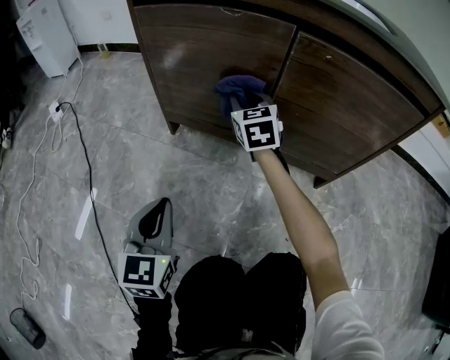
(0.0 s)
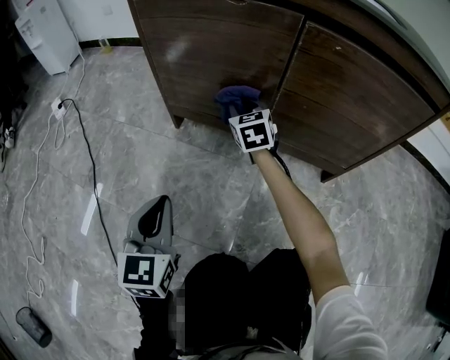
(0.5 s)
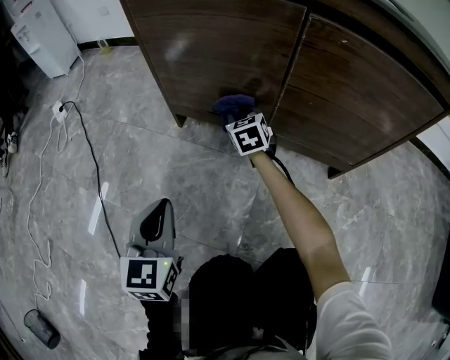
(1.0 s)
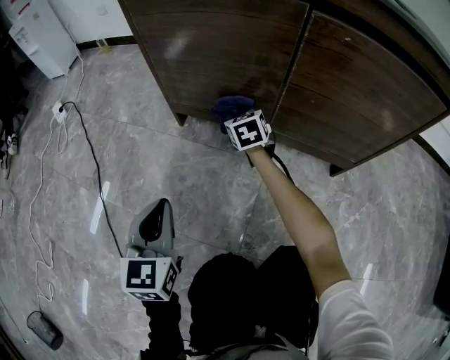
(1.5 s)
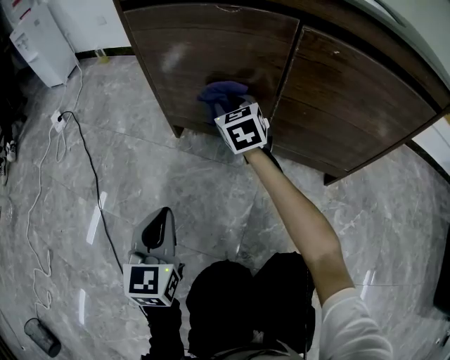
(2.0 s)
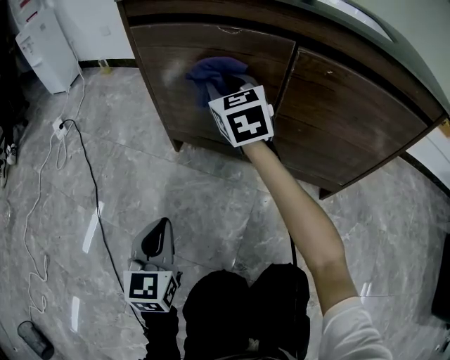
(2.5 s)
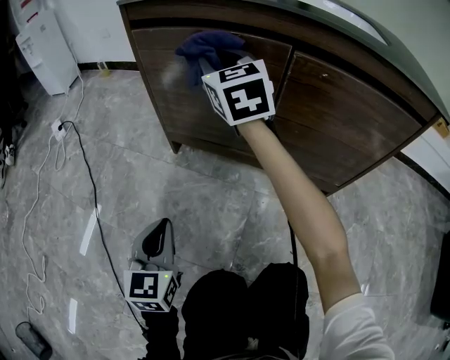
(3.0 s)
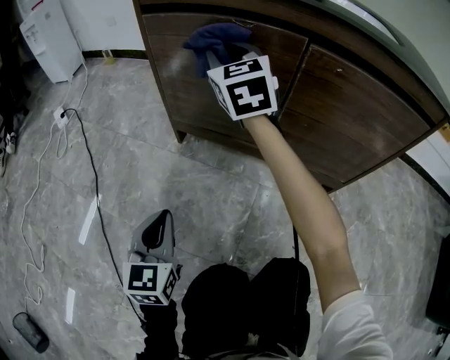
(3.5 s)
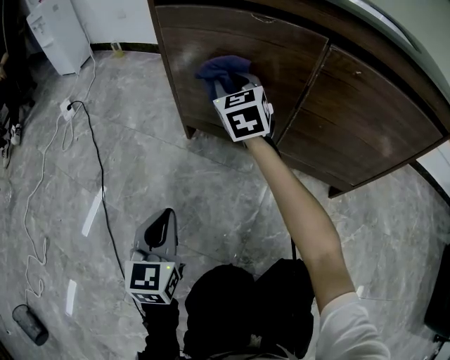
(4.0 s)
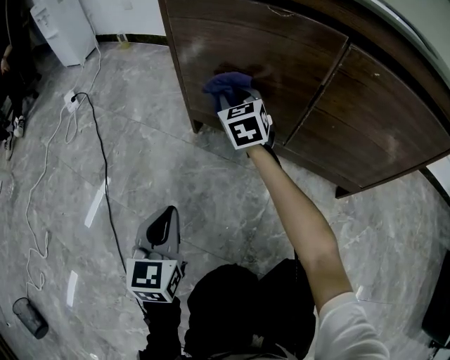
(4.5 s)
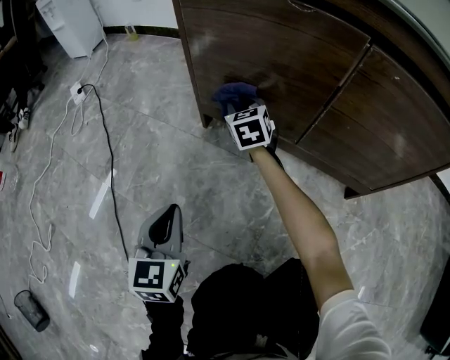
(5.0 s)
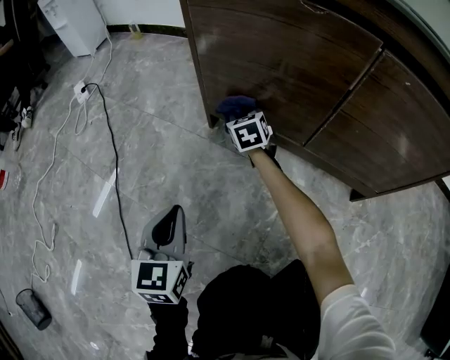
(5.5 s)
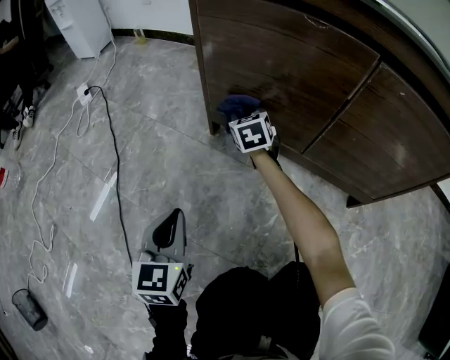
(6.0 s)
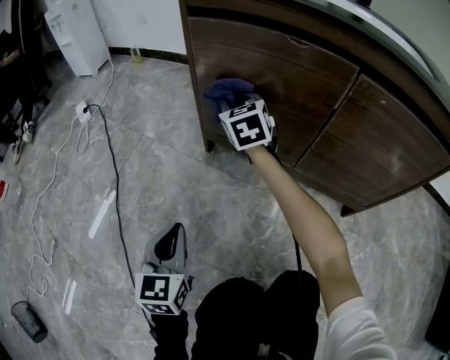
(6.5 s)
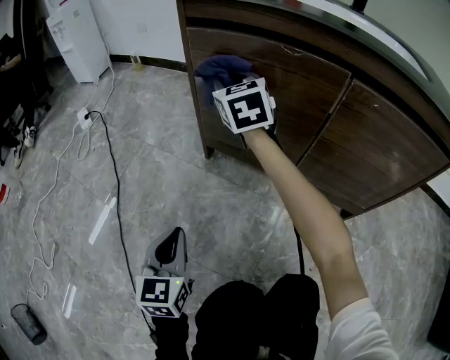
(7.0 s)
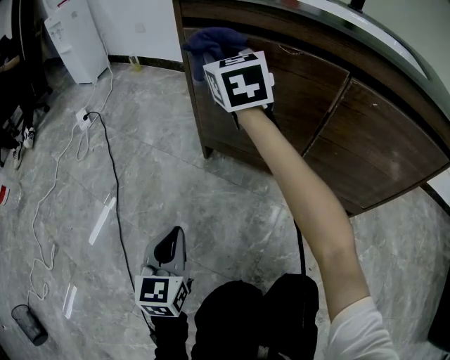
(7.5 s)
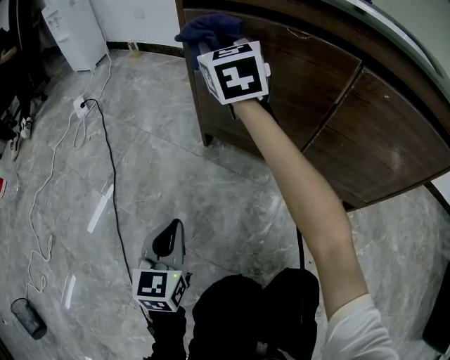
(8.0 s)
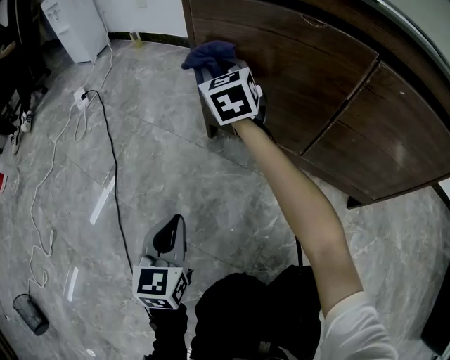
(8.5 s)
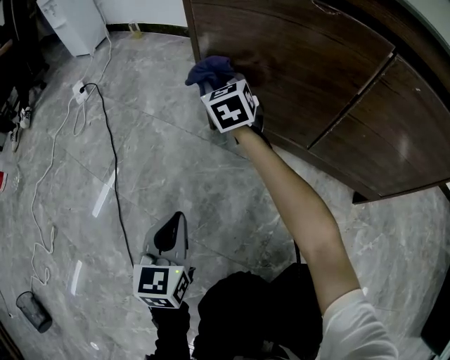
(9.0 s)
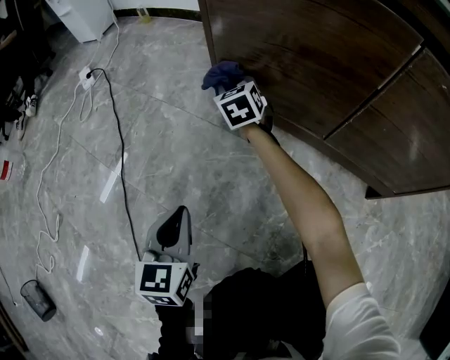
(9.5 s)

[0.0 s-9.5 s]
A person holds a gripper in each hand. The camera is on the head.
0.0 to 2.0 s: The right gripper travels to the left by approximately 5 cm, and moves roughly 15 cm downward and comes back.
2.0 to 4.0 s: The right gripper goes about 10 cm upward and to the left.
4.0 to 5.5 s: The right gripper shifts roughly 20 cm downward, and changes its angle by about 20 degrees.
5.5 to 7.5 s: The right gripper heads upward, covering about 35 cm, and rotates approximately 30 degrees.
7.5 to 9.5 s: The left gripper shifts about 5 cm downward. Meanwhile the right gripper heads downward, covering about 30 cm, and turns by approximately 20 degrees.

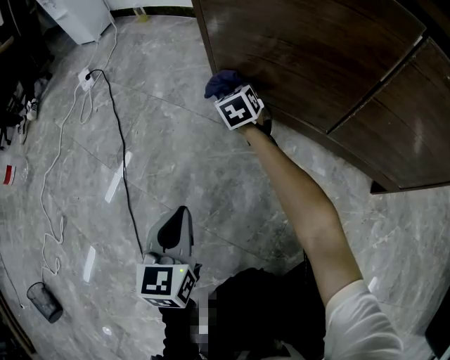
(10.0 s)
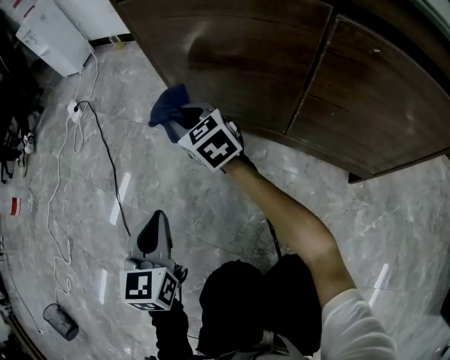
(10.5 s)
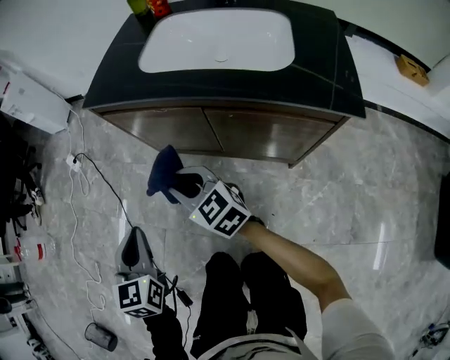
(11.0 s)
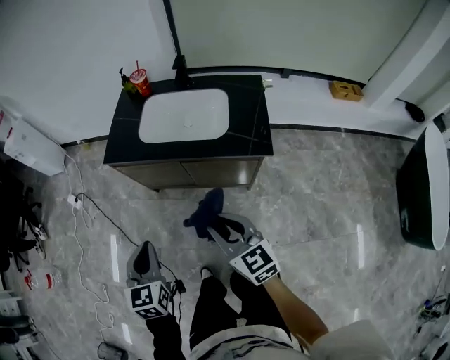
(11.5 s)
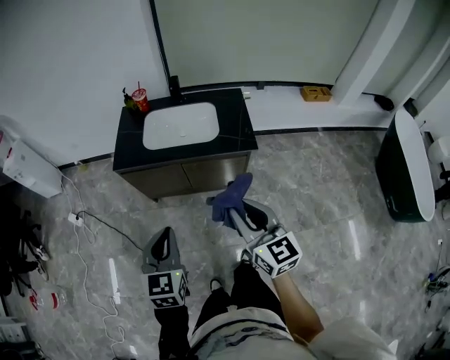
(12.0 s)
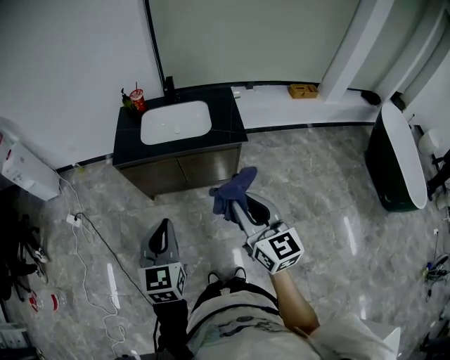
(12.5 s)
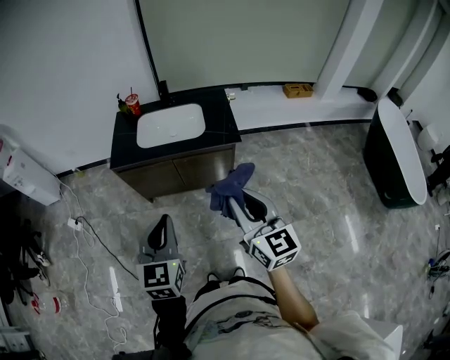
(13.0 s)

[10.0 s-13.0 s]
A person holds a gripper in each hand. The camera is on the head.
10.0 to 11.5 s: The left gripper goes roughly 60 cm upward; the right gripper moves upward and backward, some 90 cm, and turns by approximately 30 degrees.
11.5 to 13.0 s: Both grippers move upward and backward, roughly 25 cm. The right gripper turns by about 30 degrees. Meanwhile the left gripper rotates roughly 20 degrees.

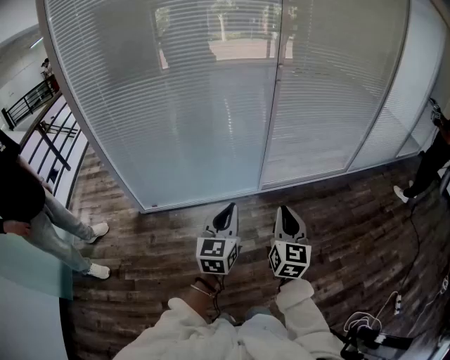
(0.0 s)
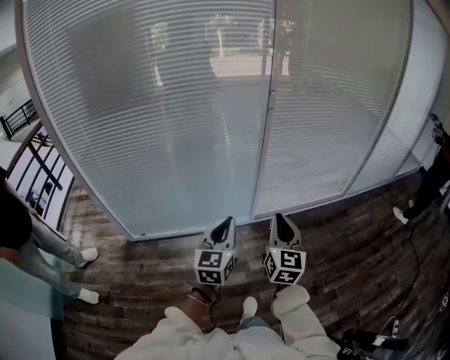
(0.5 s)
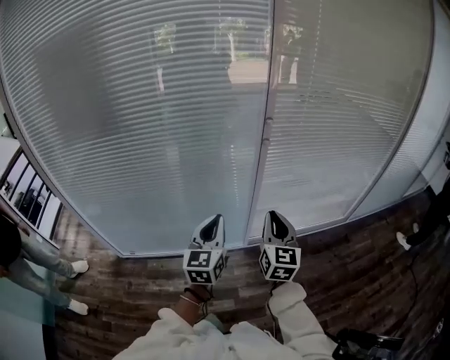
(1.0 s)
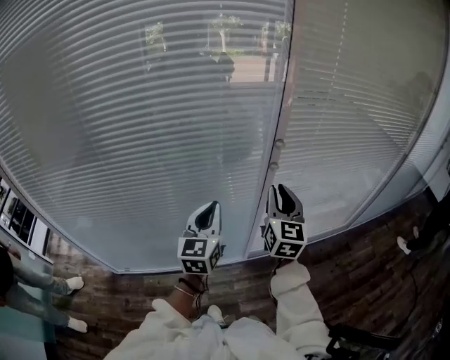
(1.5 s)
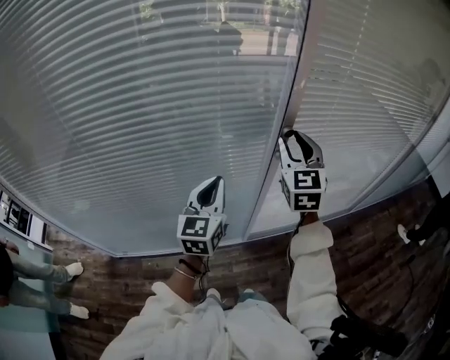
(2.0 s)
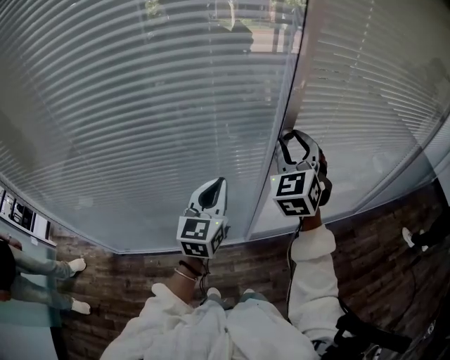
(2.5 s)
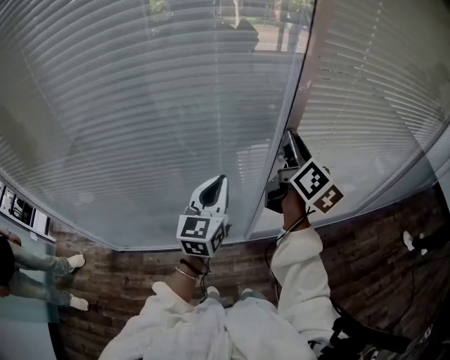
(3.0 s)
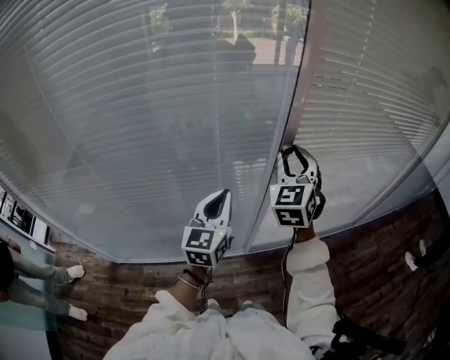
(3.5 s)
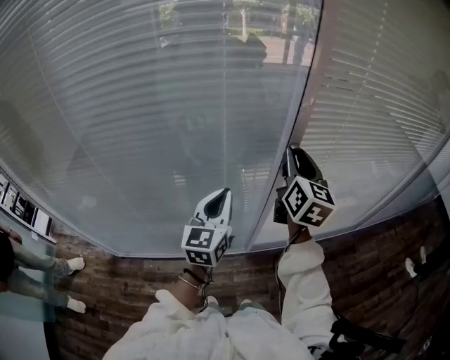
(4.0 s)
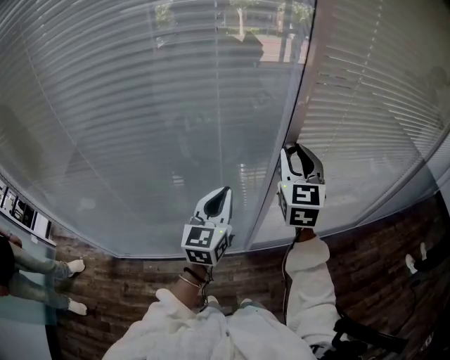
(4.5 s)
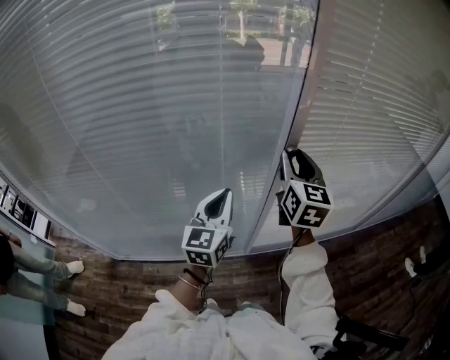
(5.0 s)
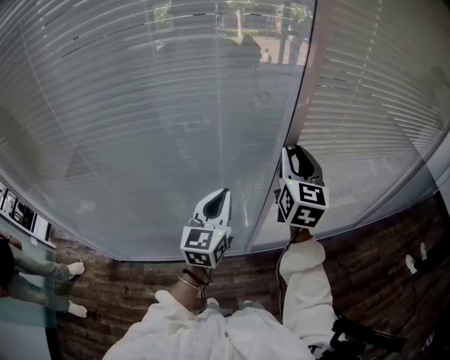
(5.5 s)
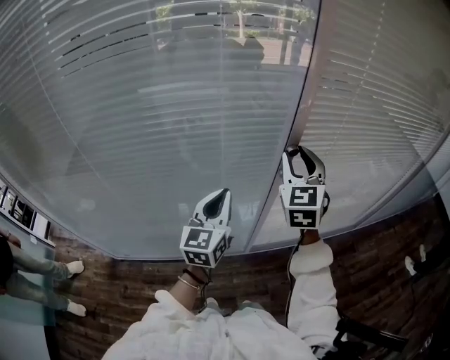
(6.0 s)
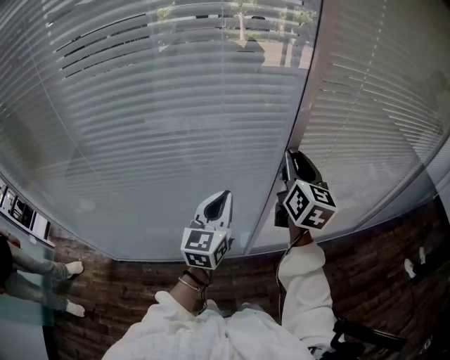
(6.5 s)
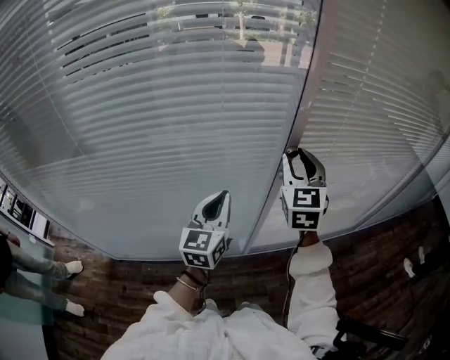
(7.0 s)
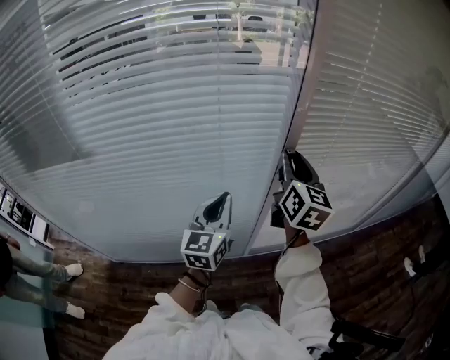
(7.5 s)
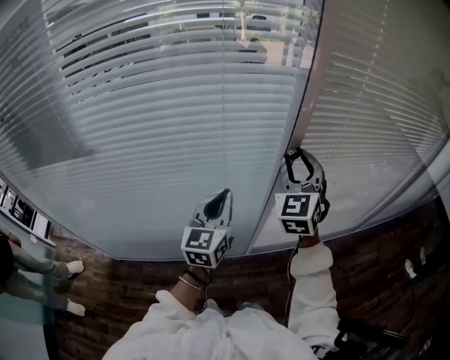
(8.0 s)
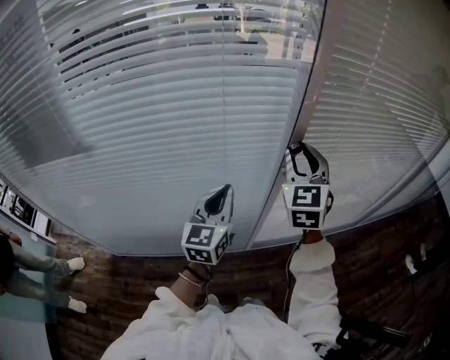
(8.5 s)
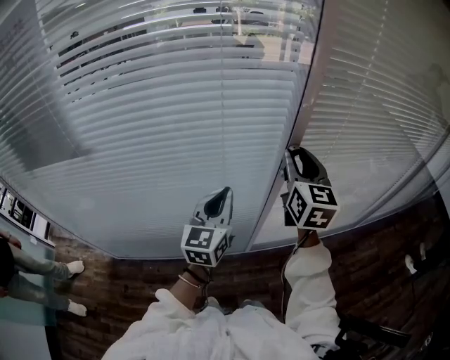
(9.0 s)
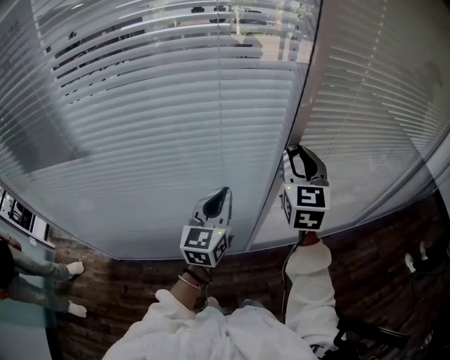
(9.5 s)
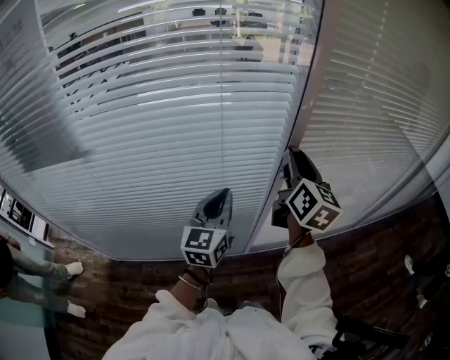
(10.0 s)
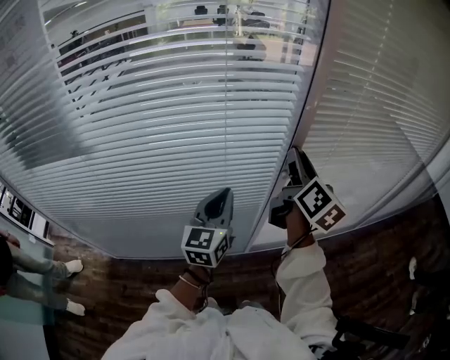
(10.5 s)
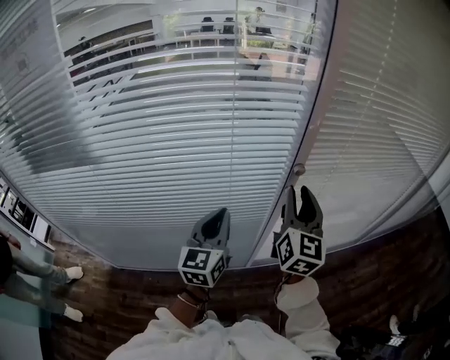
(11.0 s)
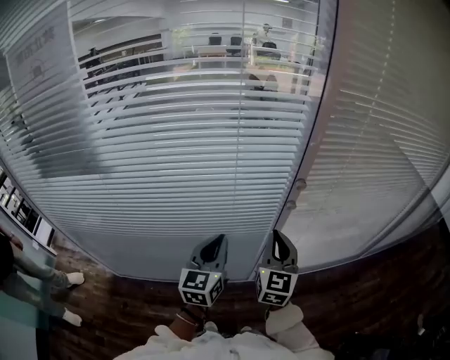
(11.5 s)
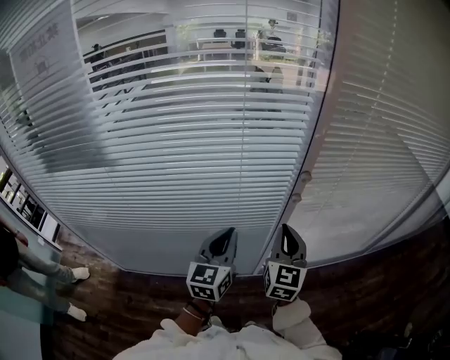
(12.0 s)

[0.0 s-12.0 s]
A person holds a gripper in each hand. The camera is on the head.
0.0 to 2.0 s: The pair of grippers is taken forward, roughly 70 cm. The right gripper swivels some 20 degrees, and opens up.
2.0 to 4.0 s: The right gripper swivels roughly 30 degrees.
4.0 to 6.0 s: The right gripper rotates some 40 degrees.
8.0 to 10.0 s: The right gripper rolls clockwise, seen from behind, by some 60 degrees.
10.0 to 12.0 s: The right gripper travels downward and backward by approximately 15 cm, turns by approximately 30 degrees, and closes; the left gripper goes some 5 cm backward.

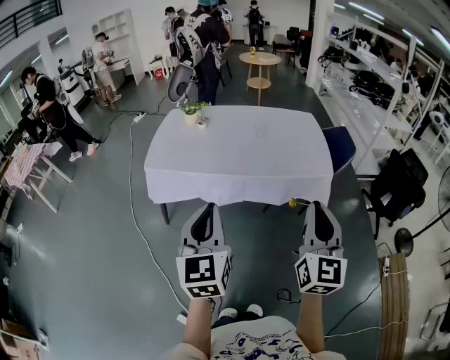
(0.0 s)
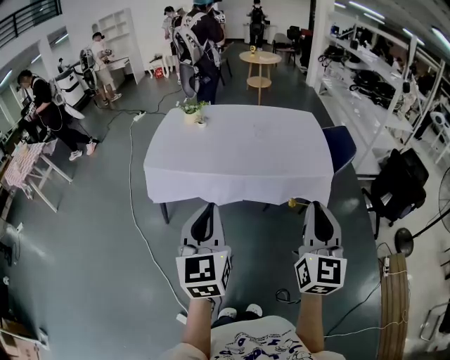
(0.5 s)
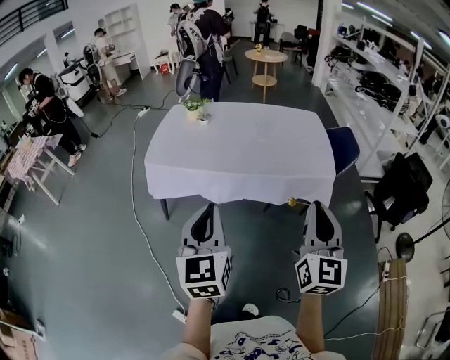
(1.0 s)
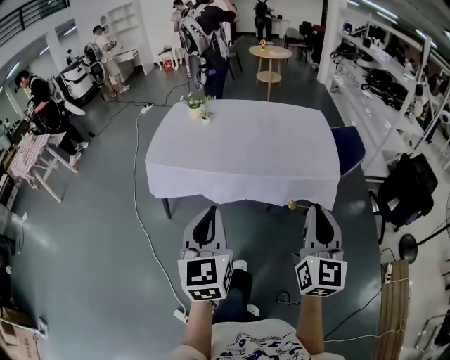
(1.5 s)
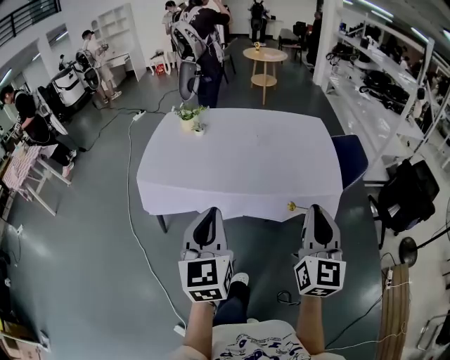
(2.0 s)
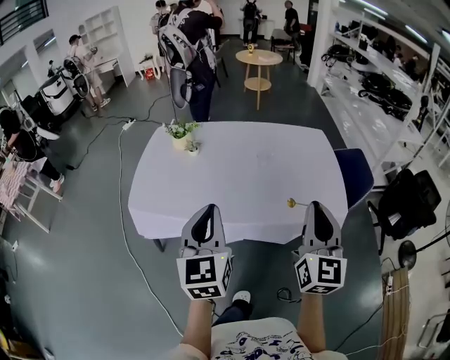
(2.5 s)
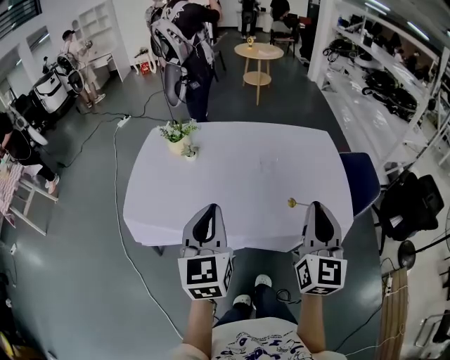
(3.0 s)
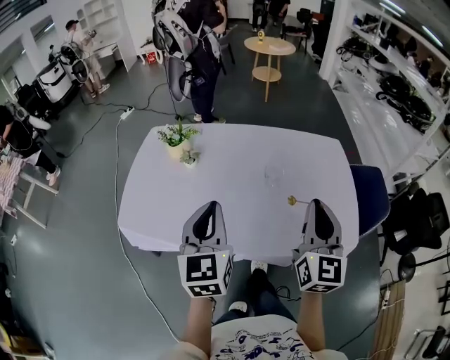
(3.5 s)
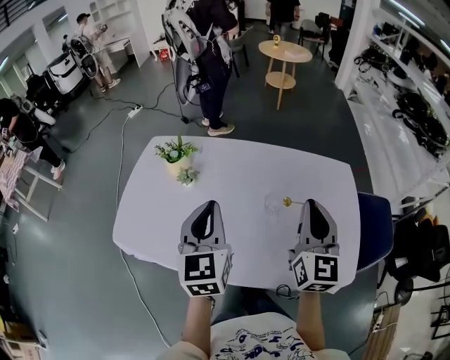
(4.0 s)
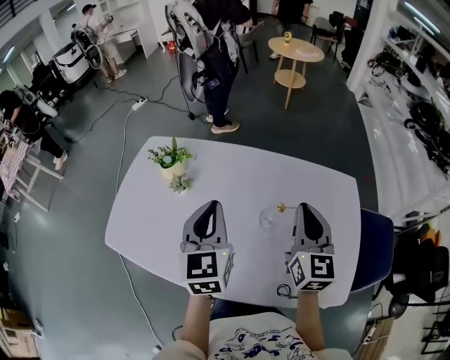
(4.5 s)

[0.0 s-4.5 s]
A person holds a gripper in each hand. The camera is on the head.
0.0 to 2.0 s: The two grippers go approximately 15 cm forward.
2.0 to 4.5 s: Both grippers are carried forward, approximately 70 cm.
